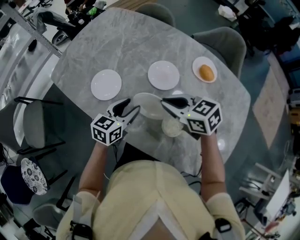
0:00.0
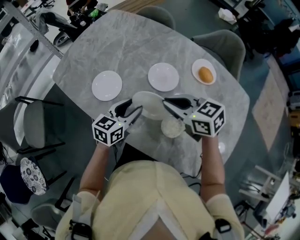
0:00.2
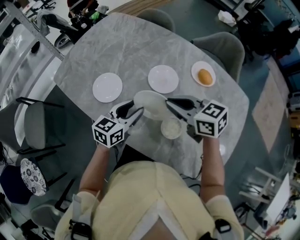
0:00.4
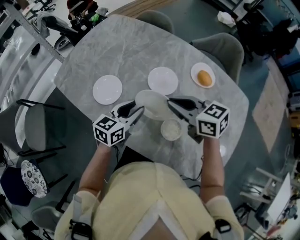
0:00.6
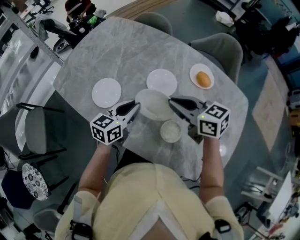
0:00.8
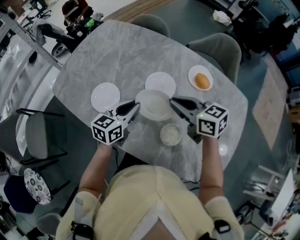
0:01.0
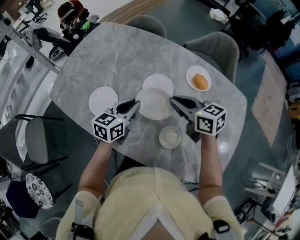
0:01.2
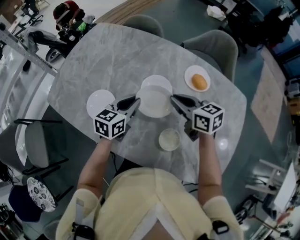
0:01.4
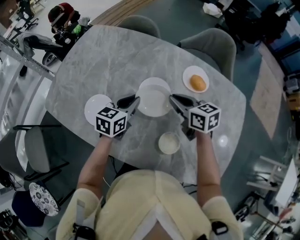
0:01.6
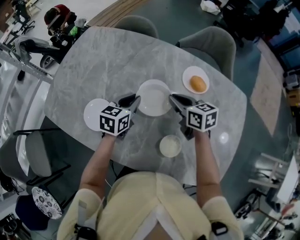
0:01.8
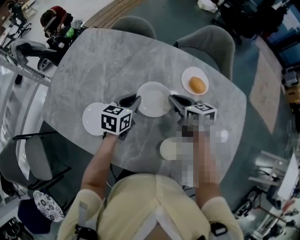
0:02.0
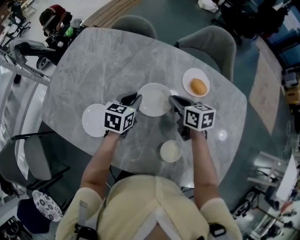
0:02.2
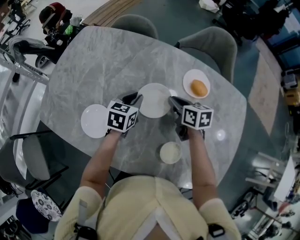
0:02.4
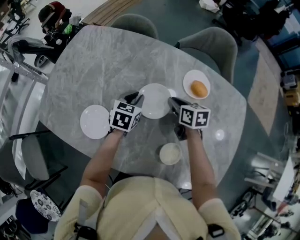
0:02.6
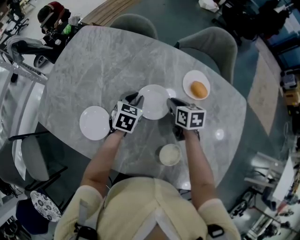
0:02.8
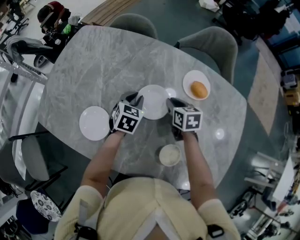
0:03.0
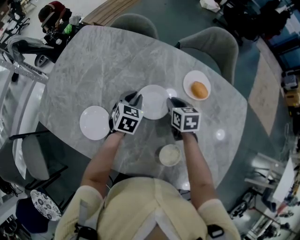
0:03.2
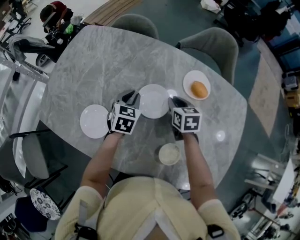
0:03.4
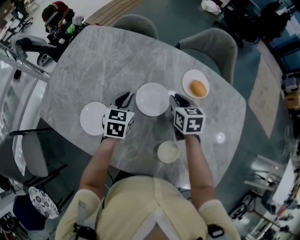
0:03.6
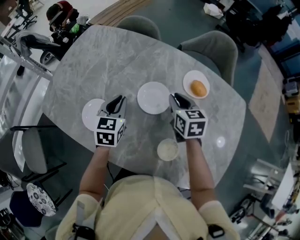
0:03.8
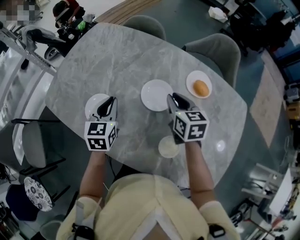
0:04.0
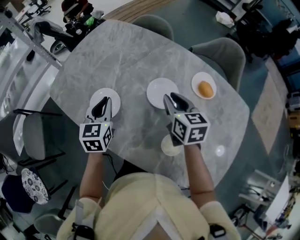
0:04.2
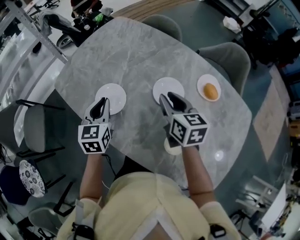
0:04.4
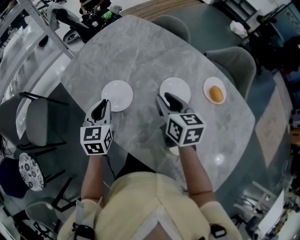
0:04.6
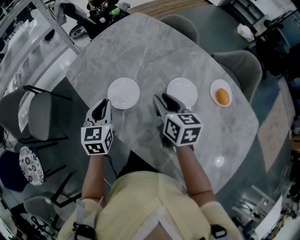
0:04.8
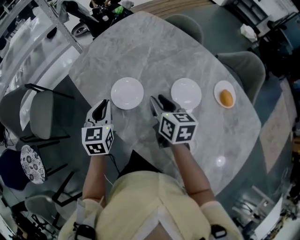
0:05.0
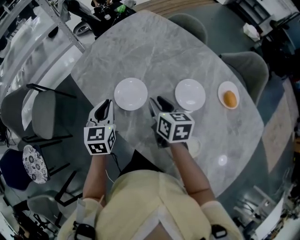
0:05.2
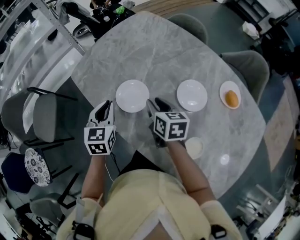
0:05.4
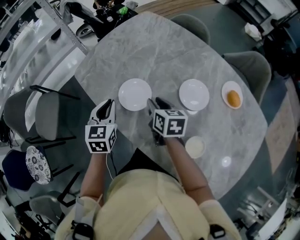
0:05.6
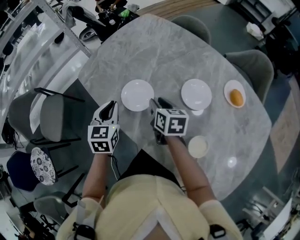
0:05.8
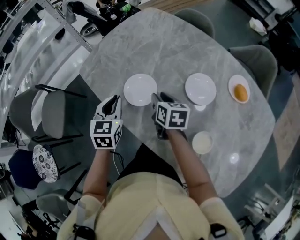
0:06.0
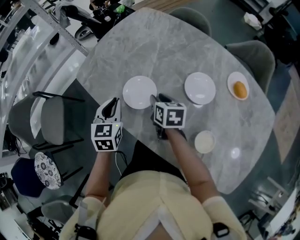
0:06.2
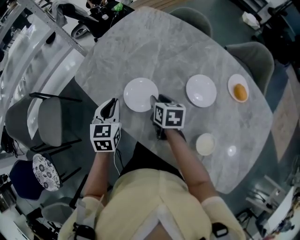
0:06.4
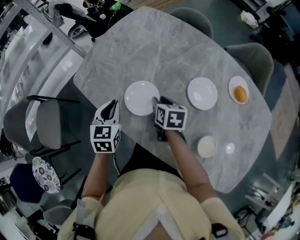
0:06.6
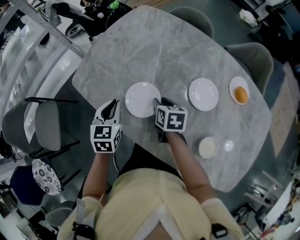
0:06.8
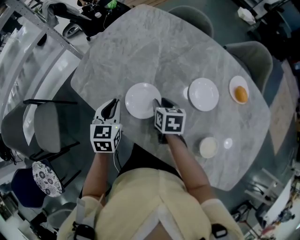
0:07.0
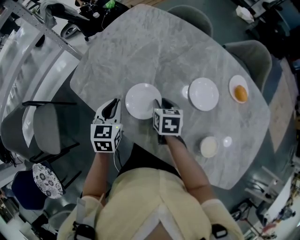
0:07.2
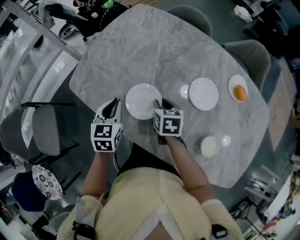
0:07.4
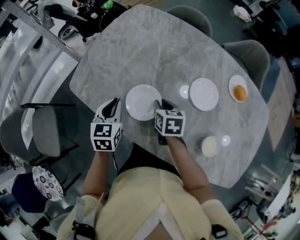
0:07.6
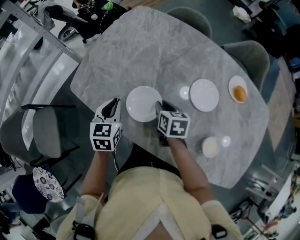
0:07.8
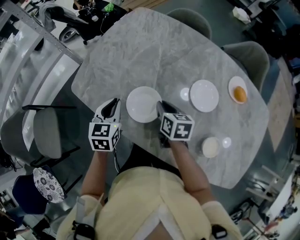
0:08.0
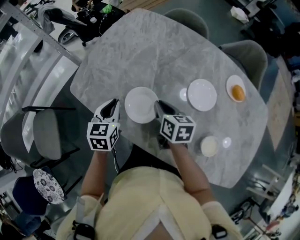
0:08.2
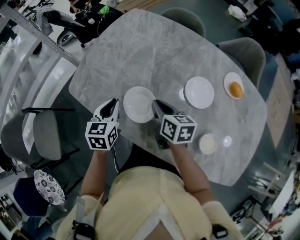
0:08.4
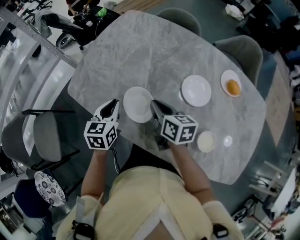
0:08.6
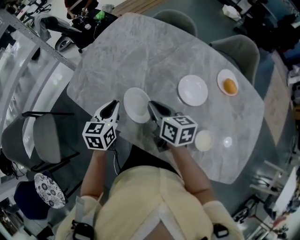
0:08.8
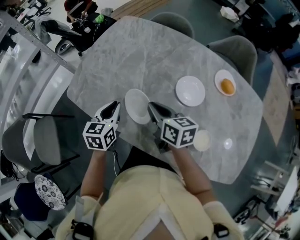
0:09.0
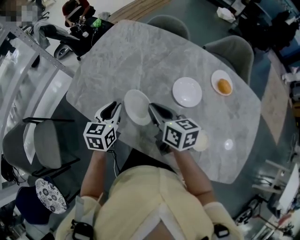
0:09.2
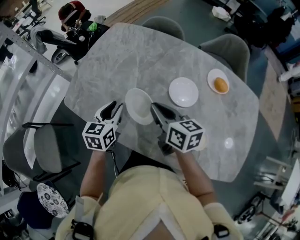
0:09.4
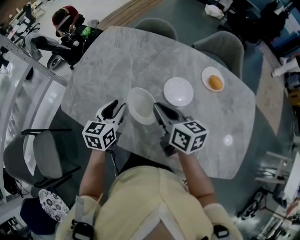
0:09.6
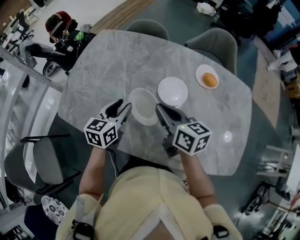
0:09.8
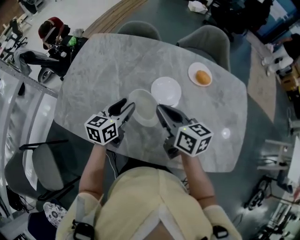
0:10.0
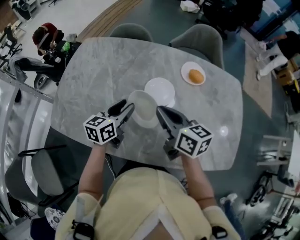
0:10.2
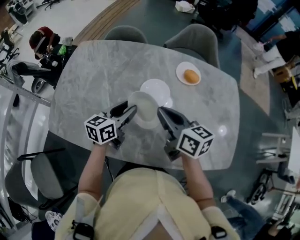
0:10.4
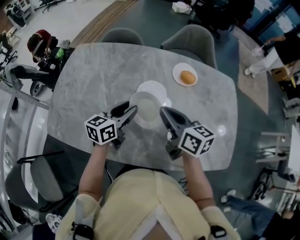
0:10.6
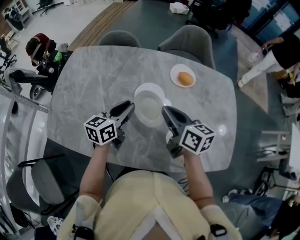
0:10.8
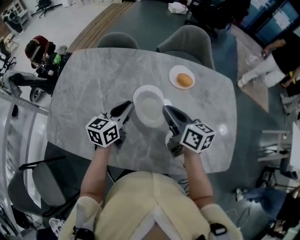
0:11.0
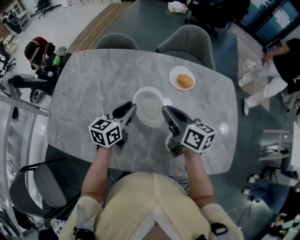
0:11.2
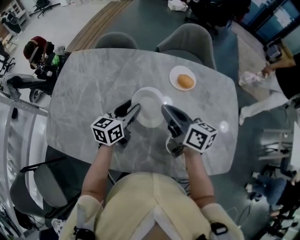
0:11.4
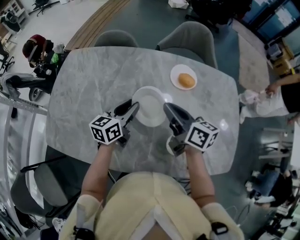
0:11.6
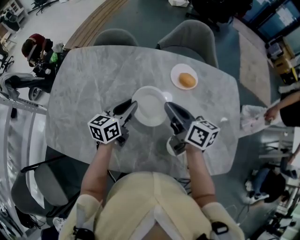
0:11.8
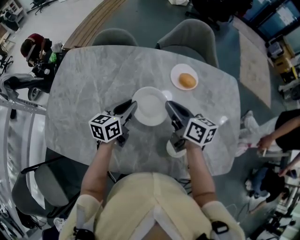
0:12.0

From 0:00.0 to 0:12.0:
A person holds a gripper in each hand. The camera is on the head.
From 0:00.0 to 0:01.6: The left gripper travels forward by approximately 10 cm, and closes up; the right gripper is displaced forward and to the right by some 15 cm, and swivels some 30 degrees.
From 0:01.6 to 0:03.0: The right gripper heads downward and forward, covering some 10 cm, and swivels some 30 degrees. Meanwhile the left gripper heads forward and downward, covering roughly 10 cm, and swivels about 20 degrees.
From 0:03.0 to 0:04.4: The left gripper moves to the left, backward and upward, some 25 cm, and rotates approximately 40 degrees. The right gripper goes approximately 20 cm upward, to the left and backward, and changes its angle by roughly 20 degrees.
From 0:04.4 to 0:06.0: The right gripper shifts approximately 20 cm to the left and downward; the left gripper shifts some 10 cm to the left.
From 0:06.0 to 0:07.6: The left gripper heads forward, covering about 5 cm. The right gripper changes place by approximately 5 cm.
From 0:07.6 to 0:09.0: The left gripper ends up about 5 cm from where it was, while the right gripper goes approximately 10 cm upward, and changes its angle by roughly 30 degrees.
From 0:09.0 to 0:10.4: The right gripper changes place by roughly 20 cm, while the left gripper changes place by some 20 cm, rotates some 40 degrees, and opens.
From 0:10.4 to 0:12.0: The right gripper heads forward and to the right, covering approximately 10 cm, while the left gripper moves forward, approximately 10 cm.

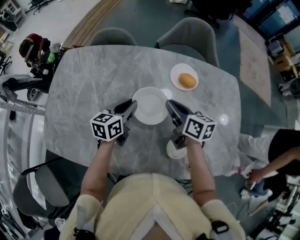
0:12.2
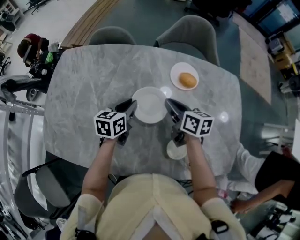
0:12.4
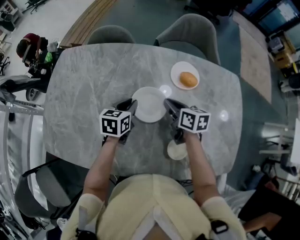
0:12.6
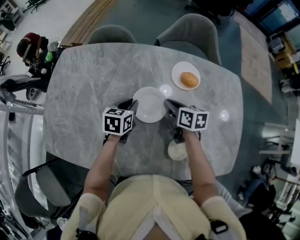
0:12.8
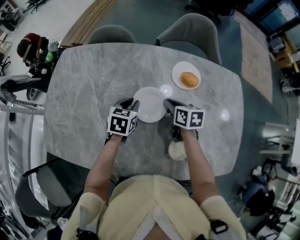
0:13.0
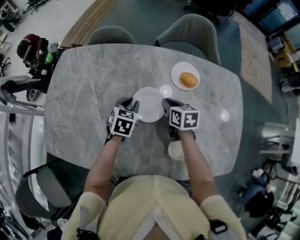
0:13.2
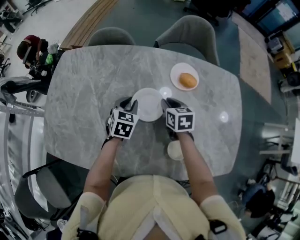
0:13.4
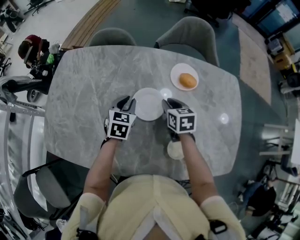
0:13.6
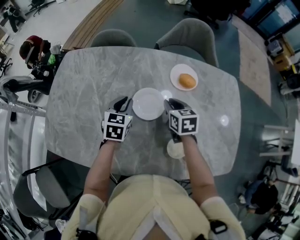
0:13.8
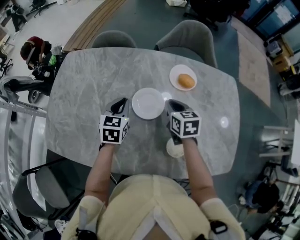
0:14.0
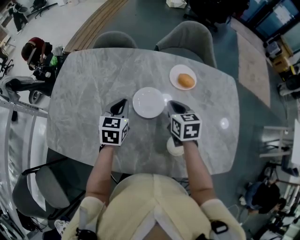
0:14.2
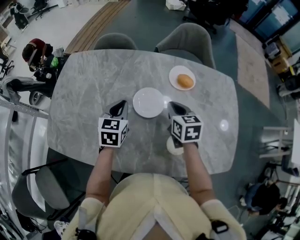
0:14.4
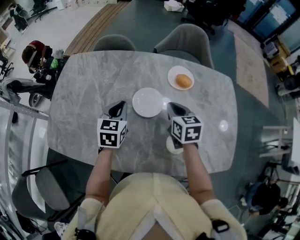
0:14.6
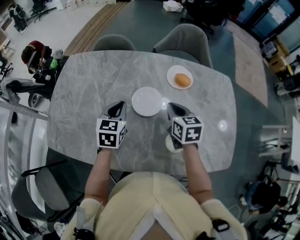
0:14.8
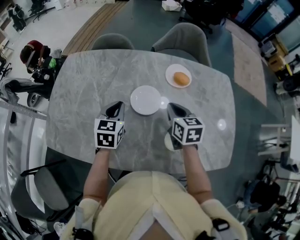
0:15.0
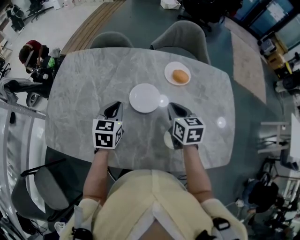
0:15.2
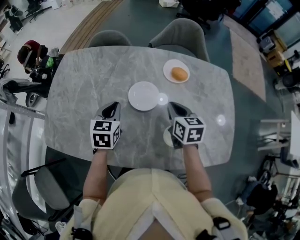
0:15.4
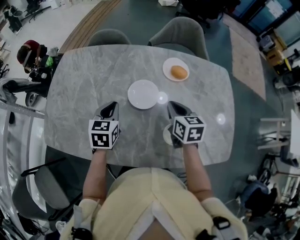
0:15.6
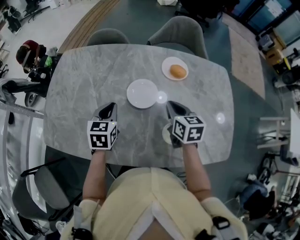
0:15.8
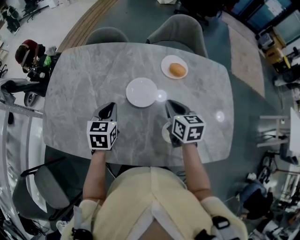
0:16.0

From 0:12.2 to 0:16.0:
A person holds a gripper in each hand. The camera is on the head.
From 0:12.2 to 0:13.4: The right gripper goes some 10 cm downward, and turns by about 30 degrees, while the left gripper moves downward, approximately 5 cm, and turns by approximately 30 degrees.
From 0:13.4 to 0:14.8: The two grippers go roughly 10 cm upward and backward.
From 0:14.8 to 0:16.0: The grippers make only small movements.

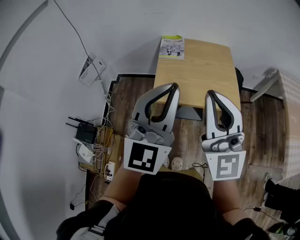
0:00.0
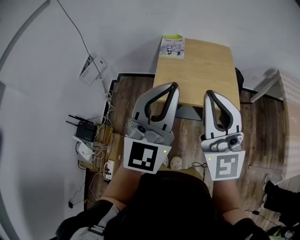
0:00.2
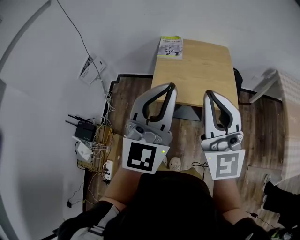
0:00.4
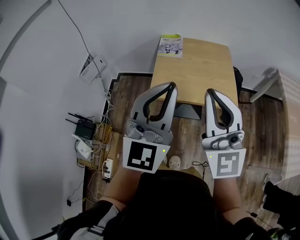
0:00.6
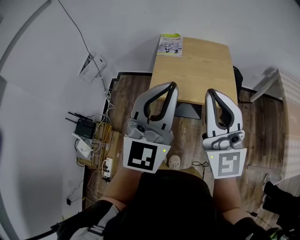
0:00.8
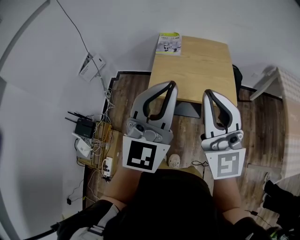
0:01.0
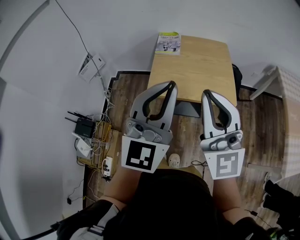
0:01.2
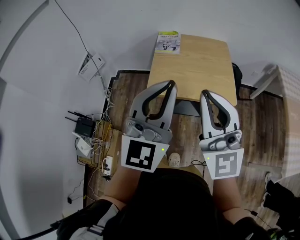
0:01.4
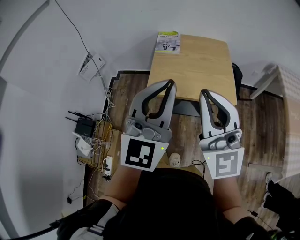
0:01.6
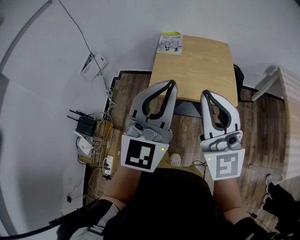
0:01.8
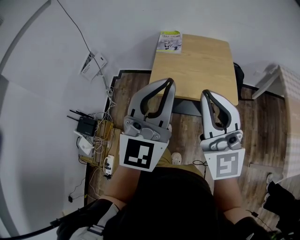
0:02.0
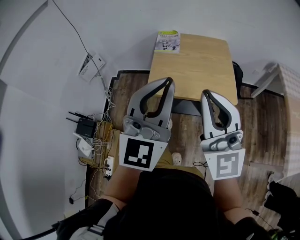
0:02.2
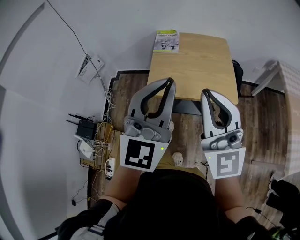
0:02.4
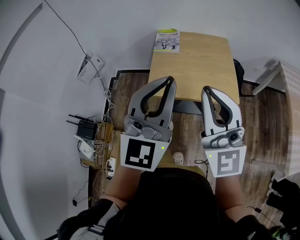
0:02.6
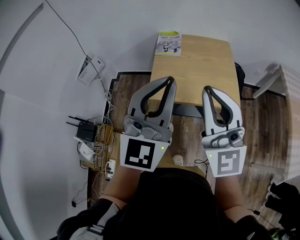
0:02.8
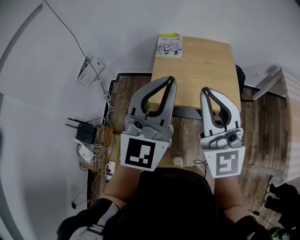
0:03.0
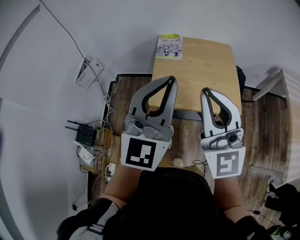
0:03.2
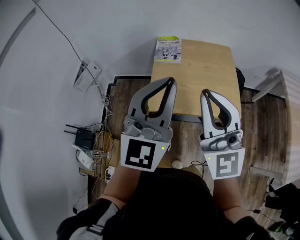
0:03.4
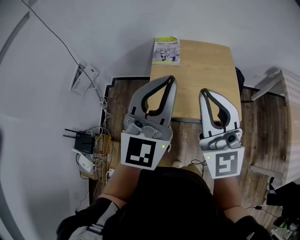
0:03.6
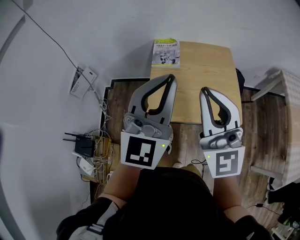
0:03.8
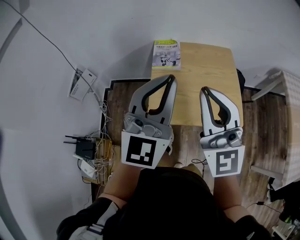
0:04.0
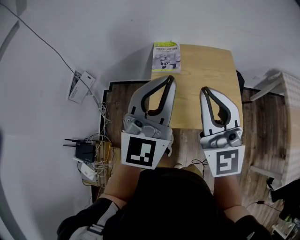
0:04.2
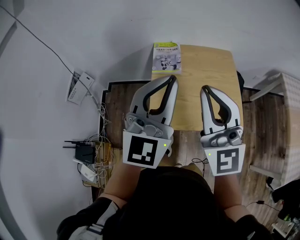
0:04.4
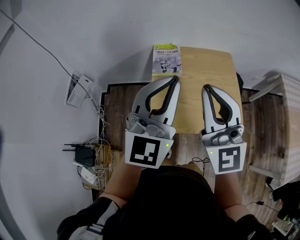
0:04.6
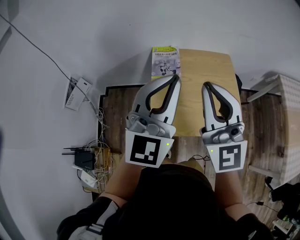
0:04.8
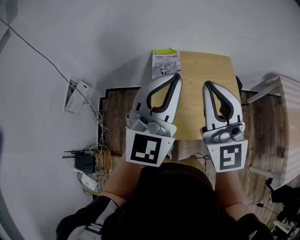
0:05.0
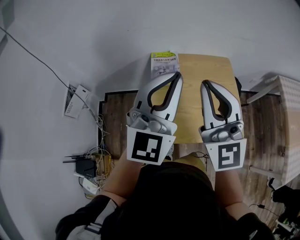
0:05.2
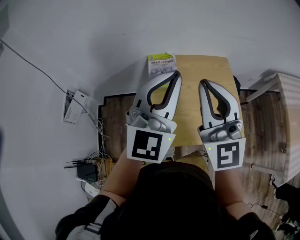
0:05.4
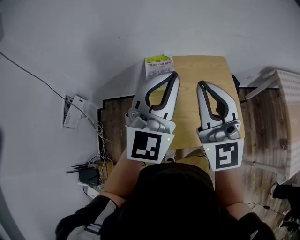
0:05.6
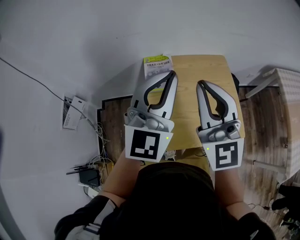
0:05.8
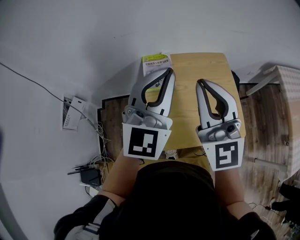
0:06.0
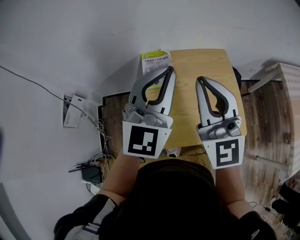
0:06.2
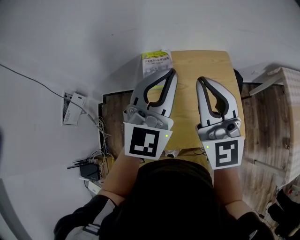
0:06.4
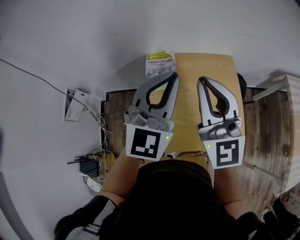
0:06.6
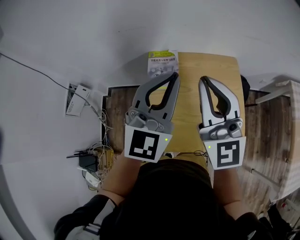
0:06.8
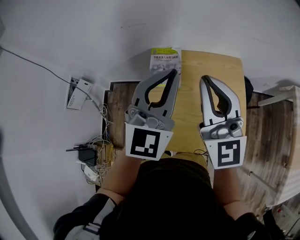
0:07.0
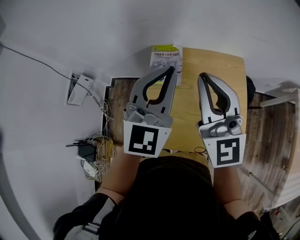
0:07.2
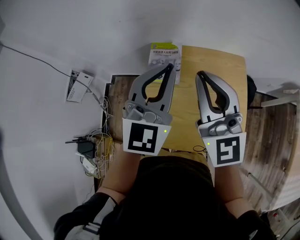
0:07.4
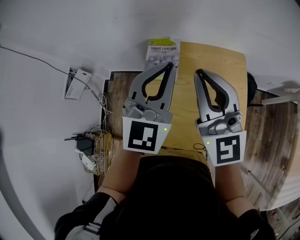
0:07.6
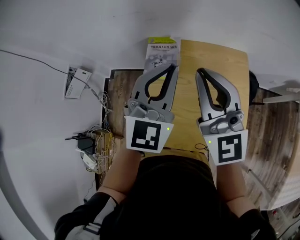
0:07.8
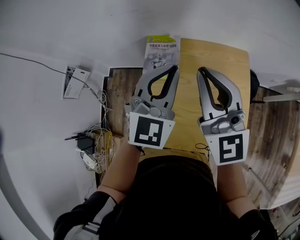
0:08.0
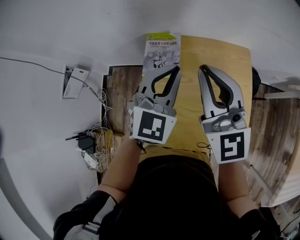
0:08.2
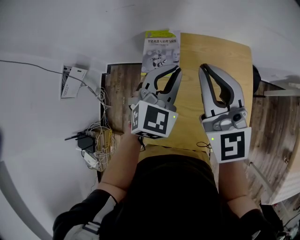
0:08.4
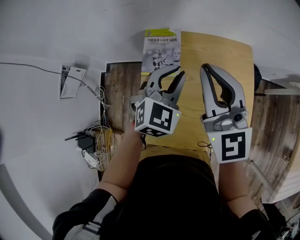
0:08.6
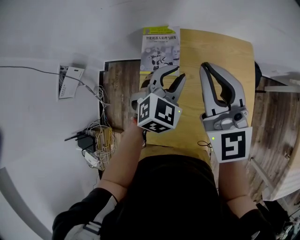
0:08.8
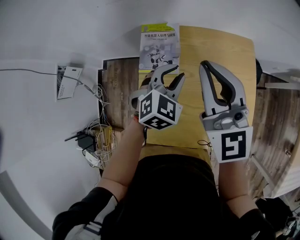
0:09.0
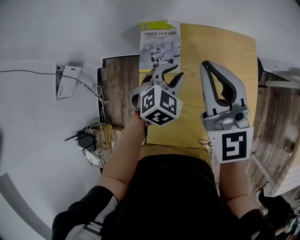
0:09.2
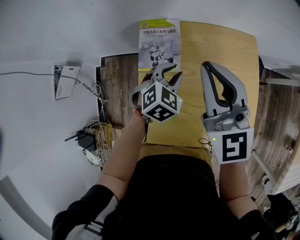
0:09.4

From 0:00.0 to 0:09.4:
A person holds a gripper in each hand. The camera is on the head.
From 0:00.0 to 0:01.6: The left gripper ends up about 5 cm from where it was; the right gripper ends up about 5 cm from where it was.
From 0:01.6 to 0:03.2: The grippers both shift forward by roughly 10 cm.
From 0:03.2 to 0:04.8: The two grippers go roughly 20 cm forward.
From 0:04.8 to 0:06.2: The two grippers go roughly 10 cm forward.
From 0:06.2 to 0:07.8: The right gripper moves forward and to the right, roughly 10 cm, while the left gripper heads forward, downward and to the right, covering some 10 cm.
From 0:07.8 to 0:09.4: The left gripper is displaced downward by roughly 25 cm, angles its fingers downward, by approximately 40 degrees, and opens; the right gripper moves downward and forward, some 10 cm.
